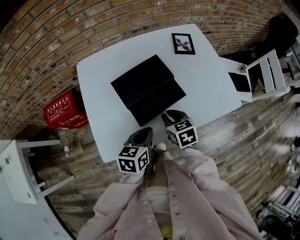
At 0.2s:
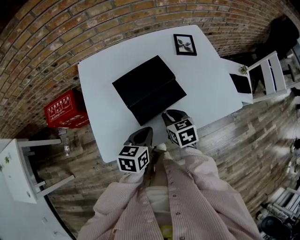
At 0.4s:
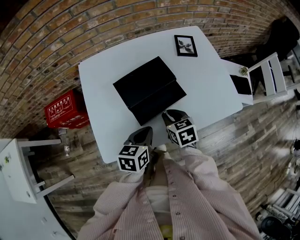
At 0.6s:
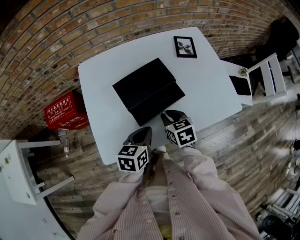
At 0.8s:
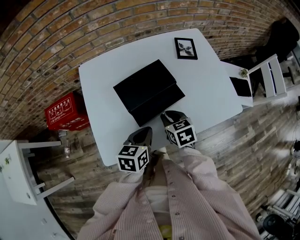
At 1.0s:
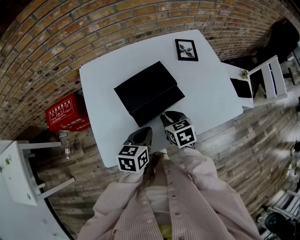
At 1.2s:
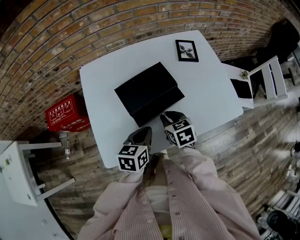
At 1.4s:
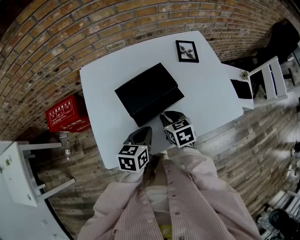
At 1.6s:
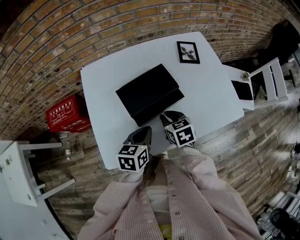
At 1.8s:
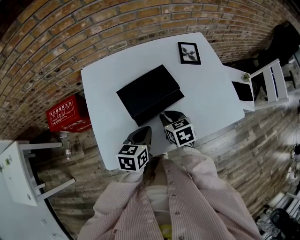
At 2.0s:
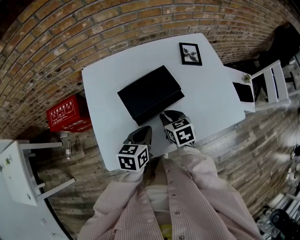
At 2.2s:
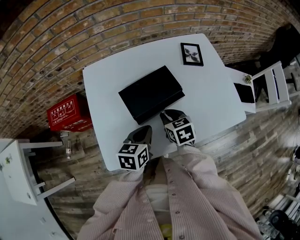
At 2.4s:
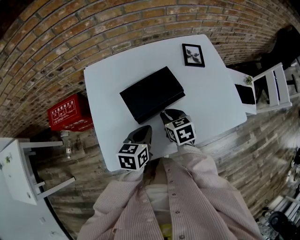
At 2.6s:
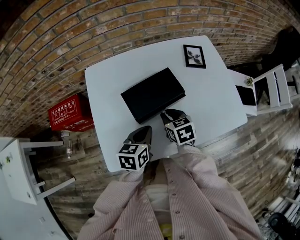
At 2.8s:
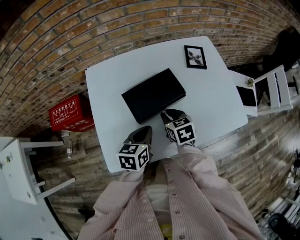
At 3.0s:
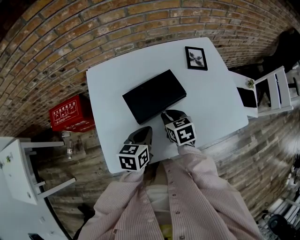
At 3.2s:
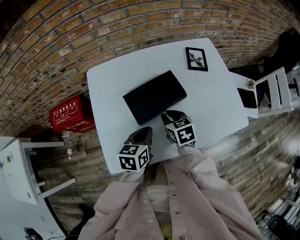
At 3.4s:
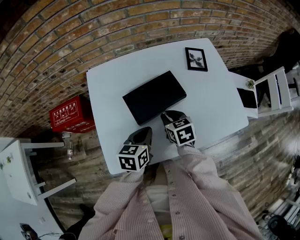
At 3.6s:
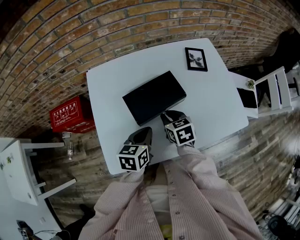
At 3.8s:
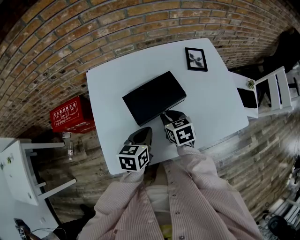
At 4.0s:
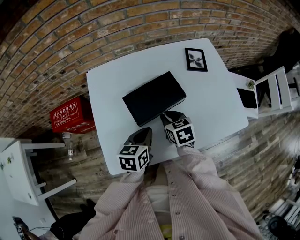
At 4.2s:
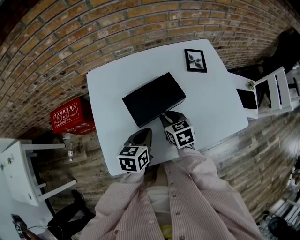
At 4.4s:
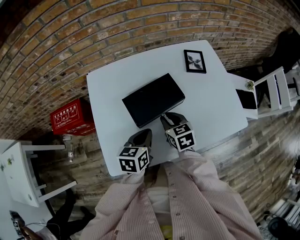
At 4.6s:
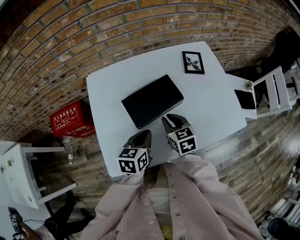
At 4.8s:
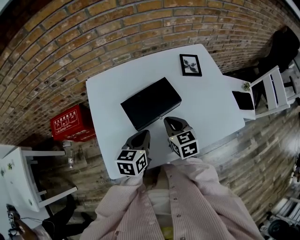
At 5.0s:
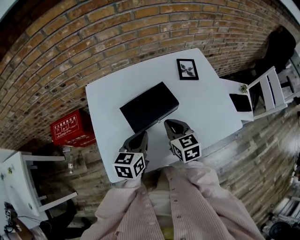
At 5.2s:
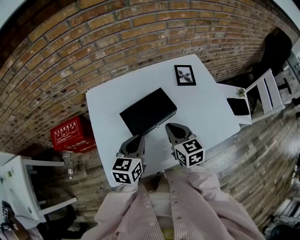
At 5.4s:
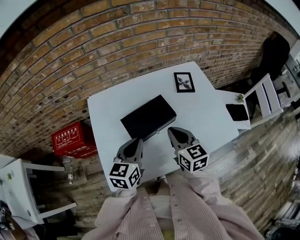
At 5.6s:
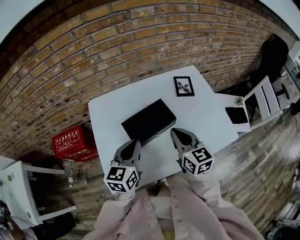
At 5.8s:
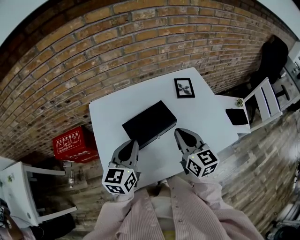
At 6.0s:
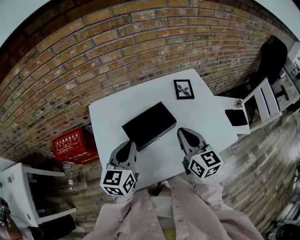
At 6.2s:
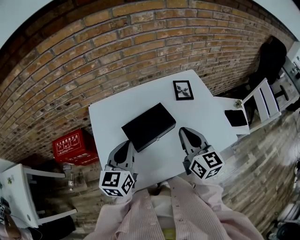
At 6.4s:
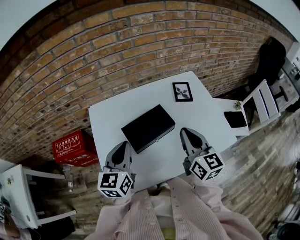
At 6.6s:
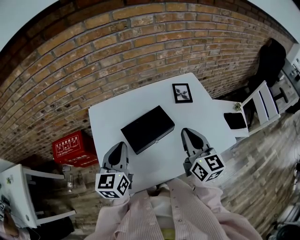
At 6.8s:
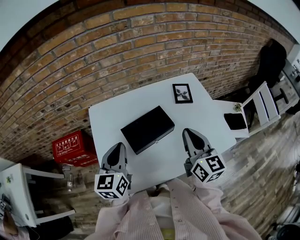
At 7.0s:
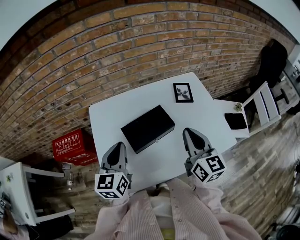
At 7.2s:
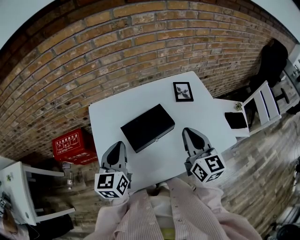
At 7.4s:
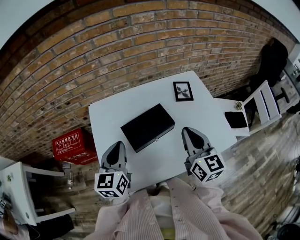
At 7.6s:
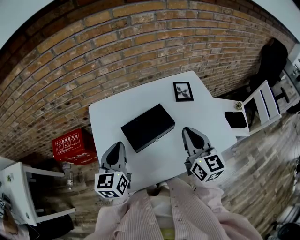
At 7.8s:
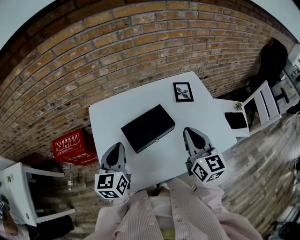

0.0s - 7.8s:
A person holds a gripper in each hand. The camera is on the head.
0.0s - 1.6s: The grippers stay close to where they were, moving slightly.
1.6s - 4.6s: The grippers make only small movements.
4.6s - 6.2s: The left gripper travels upward by some 15 cm, and rotates some 30 degrees. The right gripper goes about 20 cm upward and to the right, and rotates approximately 30 degrees.
6.2s - 7.8s: The grippers stay close to where they were, moving slightly.

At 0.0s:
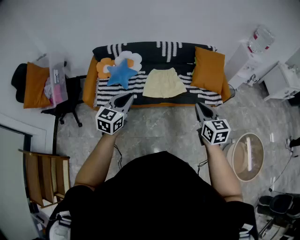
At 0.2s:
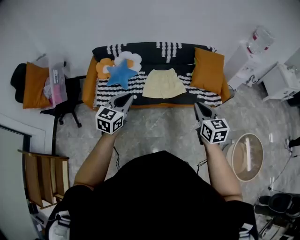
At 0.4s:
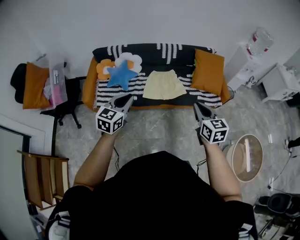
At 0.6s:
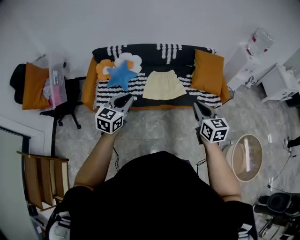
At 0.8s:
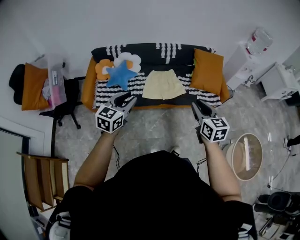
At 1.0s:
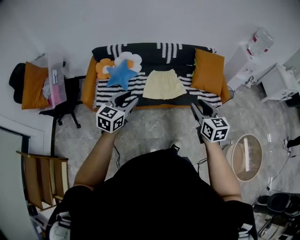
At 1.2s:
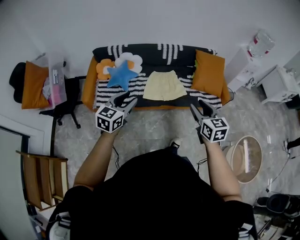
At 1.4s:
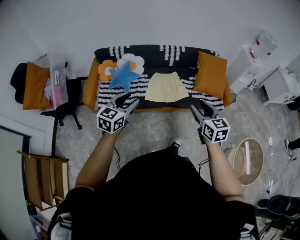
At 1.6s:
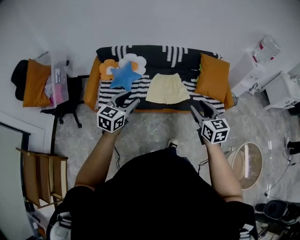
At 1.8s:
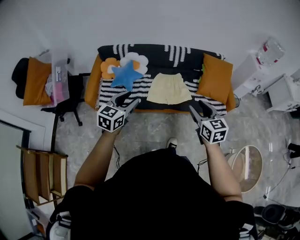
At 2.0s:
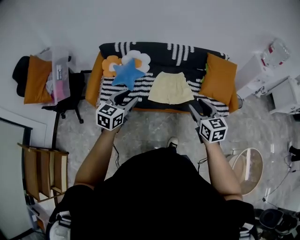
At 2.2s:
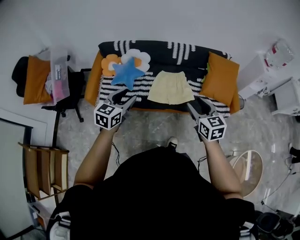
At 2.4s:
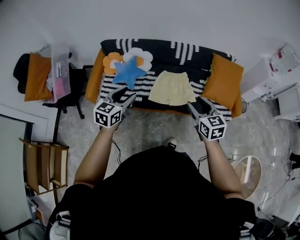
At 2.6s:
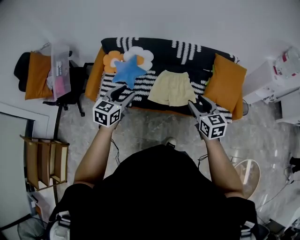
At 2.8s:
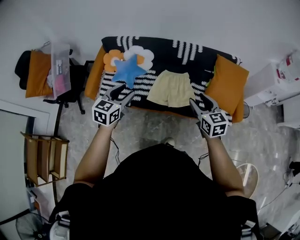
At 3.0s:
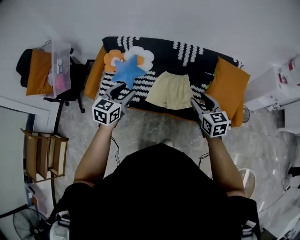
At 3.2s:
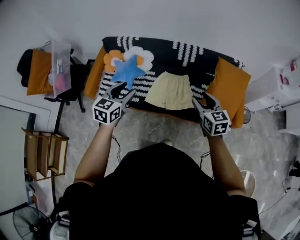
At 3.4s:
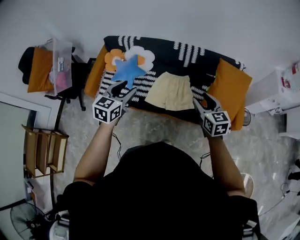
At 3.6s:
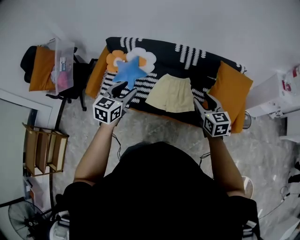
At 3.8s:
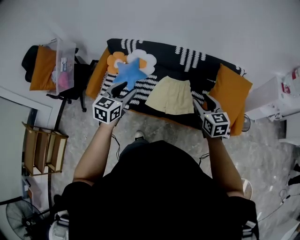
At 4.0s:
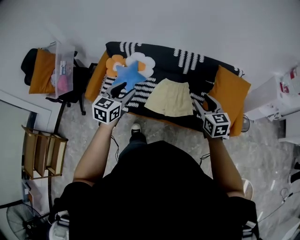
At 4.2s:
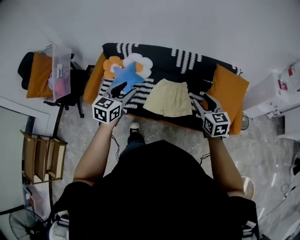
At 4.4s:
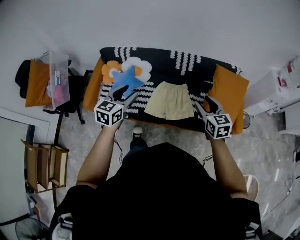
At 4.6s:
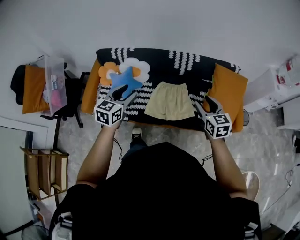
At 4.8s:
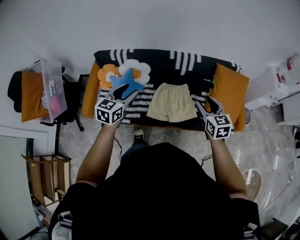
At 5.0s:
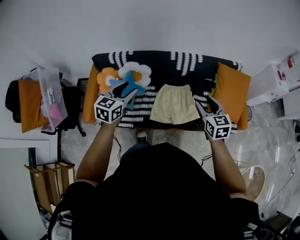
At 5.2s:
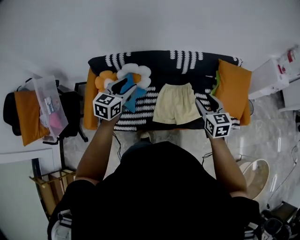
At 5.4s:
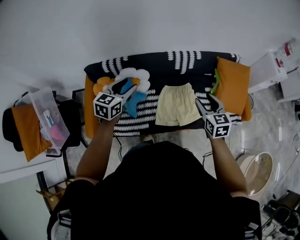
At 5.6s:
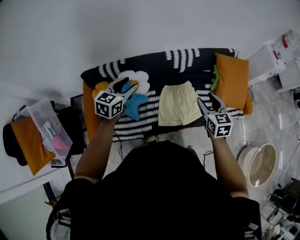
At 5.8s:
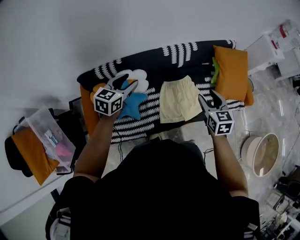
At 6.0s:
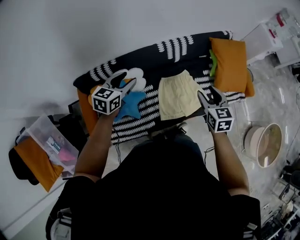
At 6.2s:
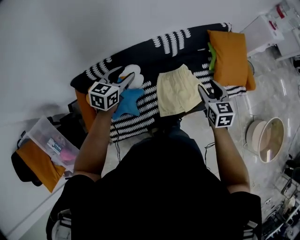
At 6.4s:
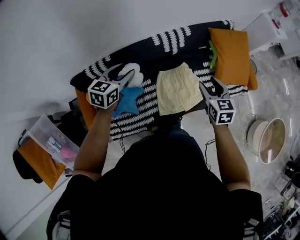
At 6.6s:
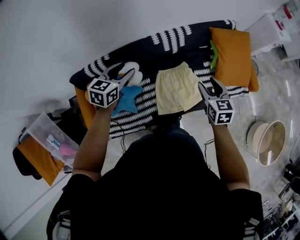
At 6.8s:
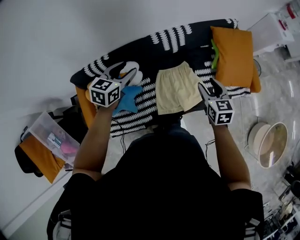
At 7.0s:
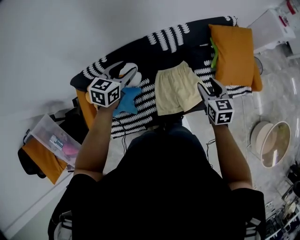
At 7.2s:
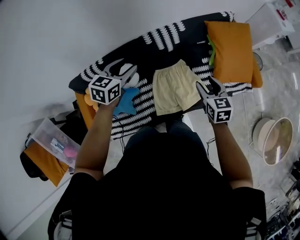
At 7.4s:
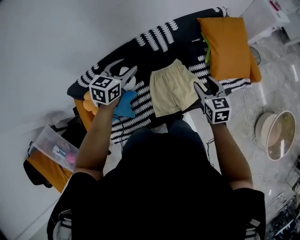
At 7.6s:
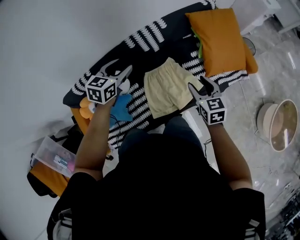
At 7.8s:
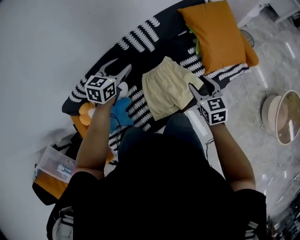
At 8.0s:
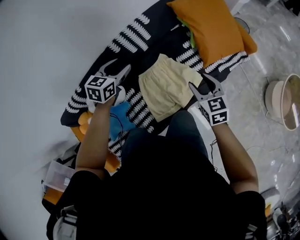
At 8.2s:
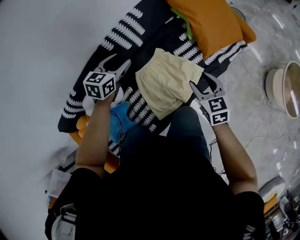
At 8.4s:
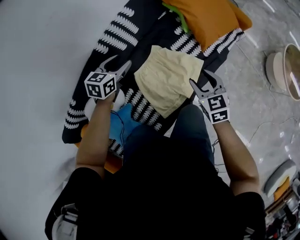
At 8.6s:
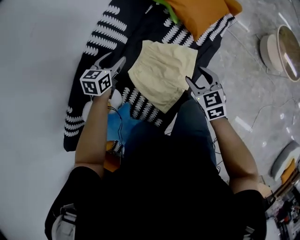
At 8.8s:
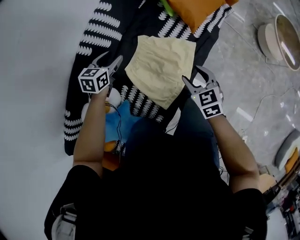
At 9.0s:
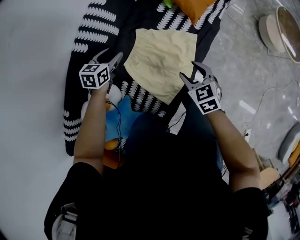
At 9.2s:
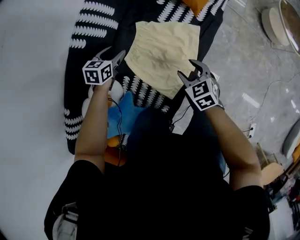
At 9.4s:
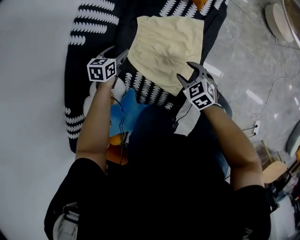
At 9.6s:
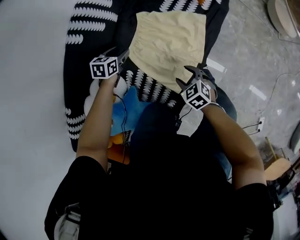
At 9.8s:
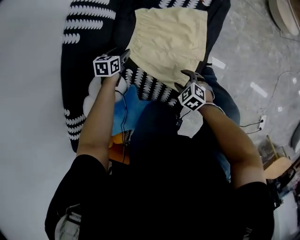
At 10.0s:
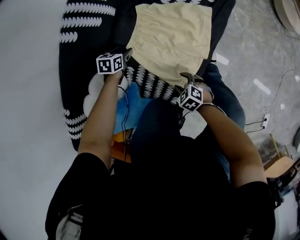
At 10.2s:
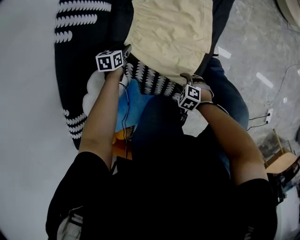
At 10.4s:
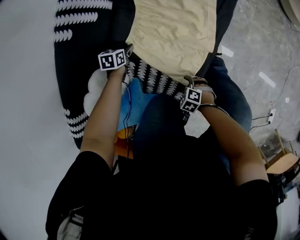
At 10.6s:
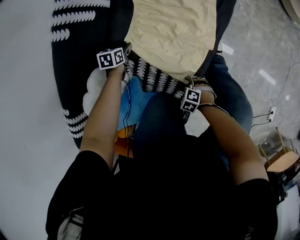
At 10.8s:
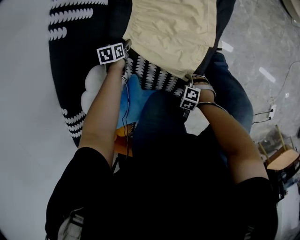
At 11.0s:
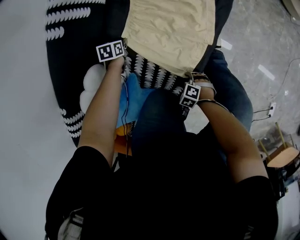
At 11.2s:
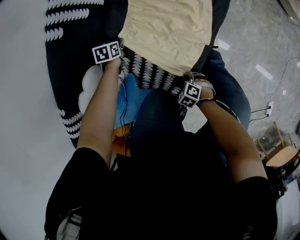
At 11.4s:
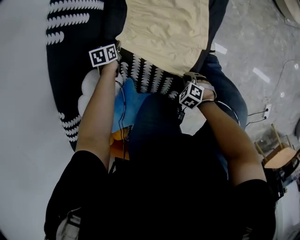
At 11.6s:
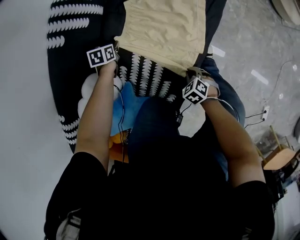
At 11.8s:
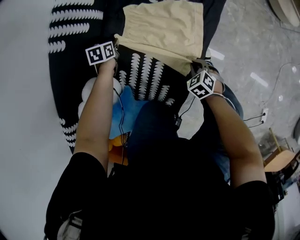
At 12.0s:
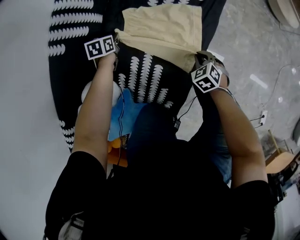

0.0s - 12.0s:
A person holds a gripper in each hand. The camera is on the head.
0.0s - 1.6s: The right gripper travels to the left and forward by about 10 cm, and opens up; the left gripper changes place by about 5 cm, and opens its fingers.
1.6s - 3.0s: The right gripper moves forward, roughly 25 cm; the left gripper is displaced forward and to the right by some 20 cm.
3.0s - 4.4s: The two grippers go approximately 5 cm forward.
4.4s - 6.0s: The right gripper moves about 25 cm, and turns by some 30 degrees, while the left gripper moves about 40 cm, and changes its angle by approximately 30 degrees.
6.0s - 7.6s: The left gripper goes approximately 25 cm to the right, forward and downward. Meanwhile the right gripper goes about 20 cm to the right, downward and forward.
7.6s - 9.0s: The grippers both shift downward by approximately 25 cm. The right gripper changes its angle by roughly 20 degrees. The left gripper changes its angle by roughly 30 degrees.
9.0s - 10.4s: Both grippers travel together downward, about 25 cm. The left gripper turns by roughly 20 degrees. Meanwhile the right gripper swivels some 40 degrees.
10.4s - 12.0s: The left gripper moves approximately 15 cm, and closes; the right gripper moves roughly 25 cm, turns by about 30 degrees, and closes.

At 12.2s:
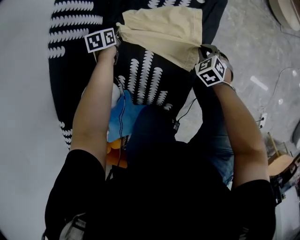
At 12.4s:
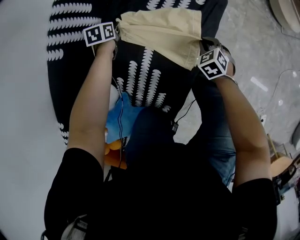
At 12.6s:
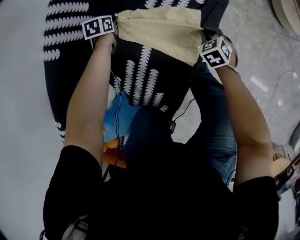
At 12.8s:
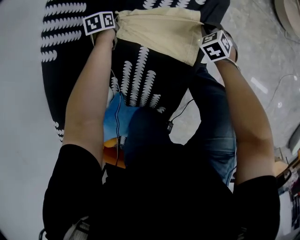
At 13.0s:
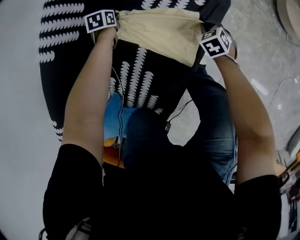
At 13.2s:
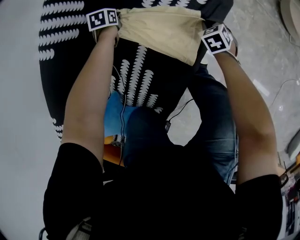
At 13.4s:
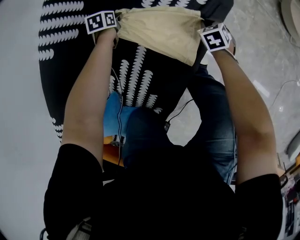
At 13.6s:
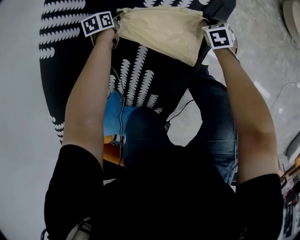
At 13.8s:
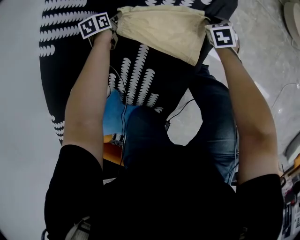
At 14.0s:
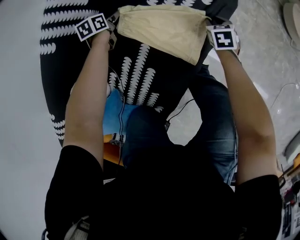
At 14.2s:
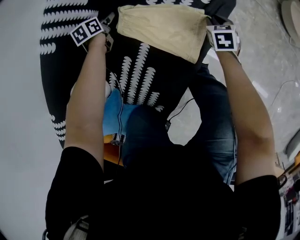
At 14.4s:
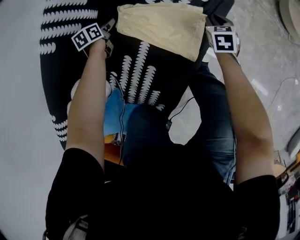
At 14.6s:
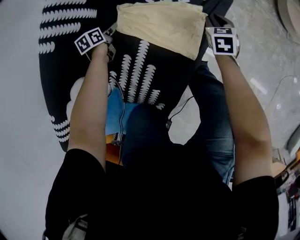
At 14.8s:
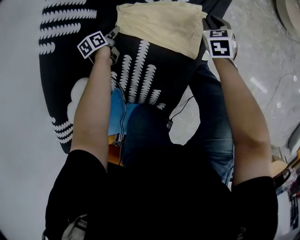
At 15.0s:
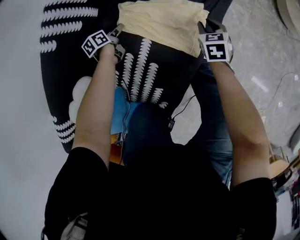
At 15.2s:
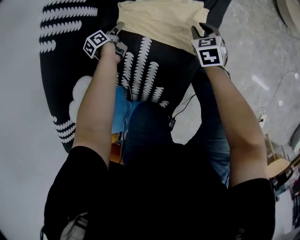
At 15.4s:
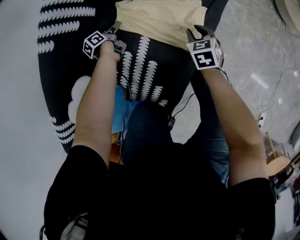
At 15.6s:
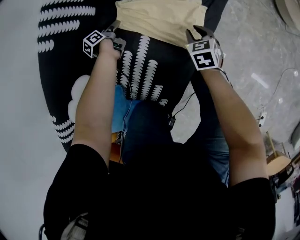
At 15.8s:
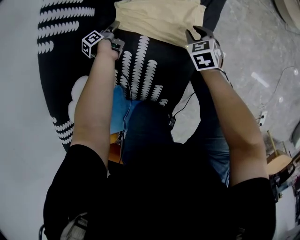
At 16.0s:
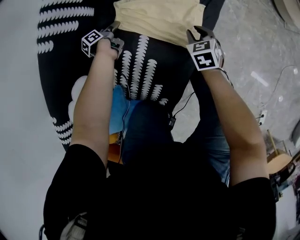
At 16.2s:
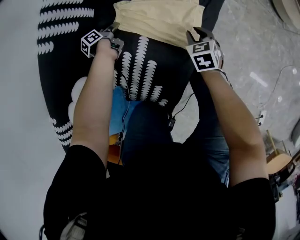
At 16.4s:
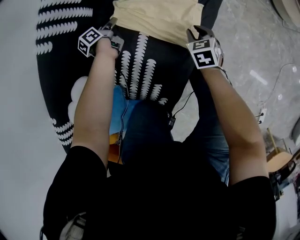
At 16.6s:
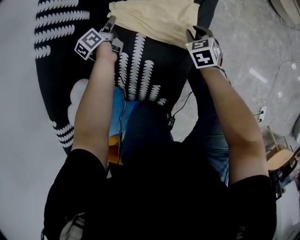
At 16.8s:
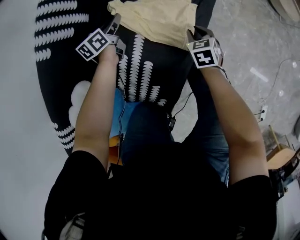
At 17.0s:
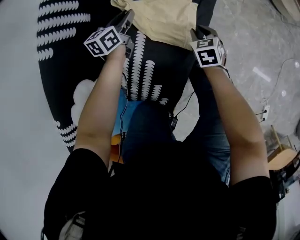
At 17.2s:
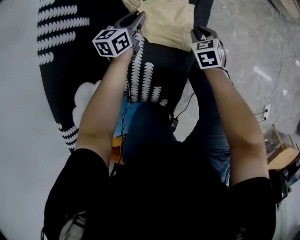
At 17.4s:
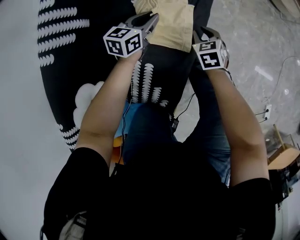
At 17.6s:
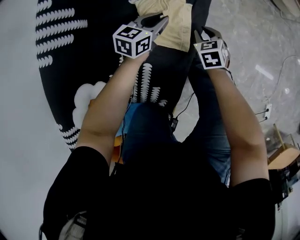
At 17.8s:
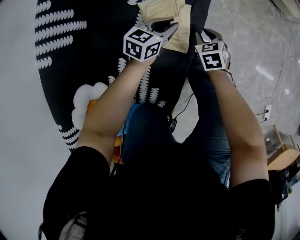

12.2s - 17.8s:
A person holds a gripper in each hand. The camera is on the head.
12.2s - 13.6s: The left gripper heads forward, covering approximately 5 cm, and opens up, while the right gripper travels forward by roughly 20 cm.
13.6s - 15.0s: The left gripper heads backward, covering approximately 10 cm, and changes its angle by roughly 30 degrees. Meanwhile the right gripper heads backward and upward, covering approximately 10 cm.
15.0s - 16.4s: The right gripper shifts some 5 cm backward, while the left gripper closes up.
16.4s - 17.8s: The left gripper moves to the right, about 30 cm, and rolls clockwise, seen from behind, by some 60 degrees; the right gripper shifts about 10 cm to the right.
